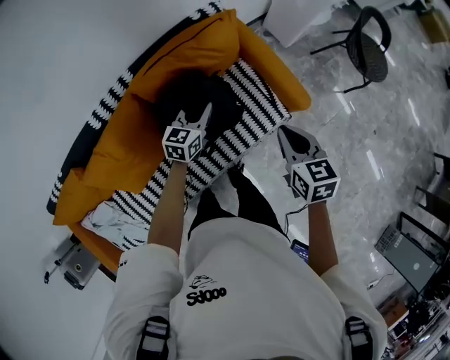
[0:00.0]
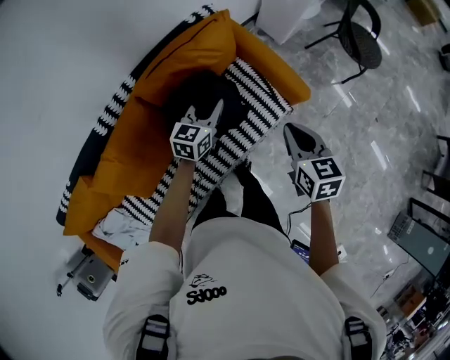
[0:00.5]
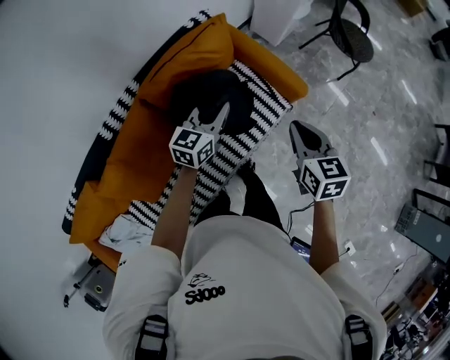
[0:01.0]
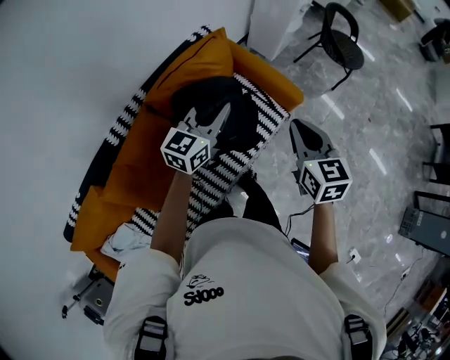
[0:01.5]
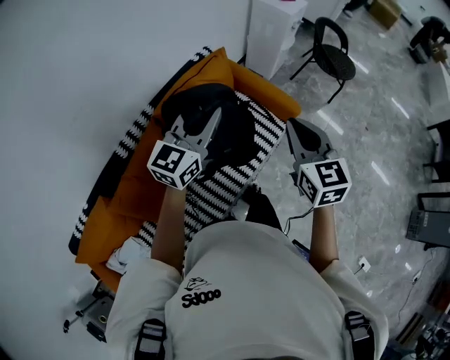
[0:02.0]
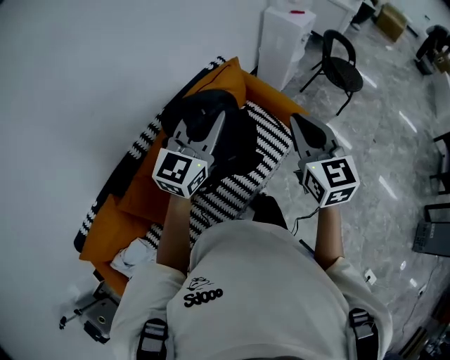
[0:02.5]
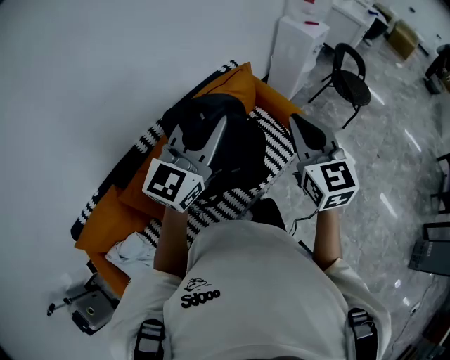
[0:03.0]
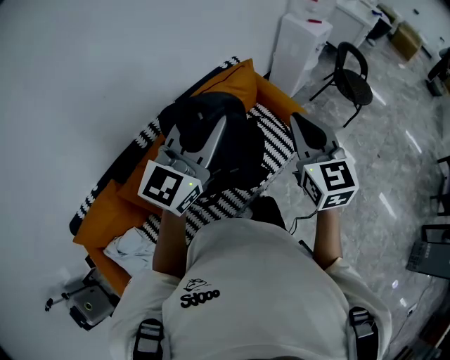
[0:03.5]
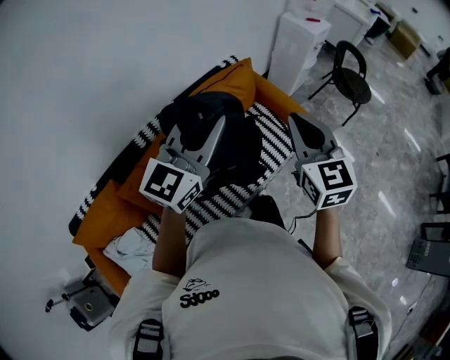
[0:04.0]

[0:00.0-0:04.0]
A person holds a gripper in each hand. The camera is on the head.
0:00.0 to 0:02.0: Both grippers move upward and backward, approximately 30 cm. The right gripper swivels some 30 degrees; the left gripper rotates some 30 degrees.
0:02.0 to 0:04.0: The left gripper goes approximately 15 cm backward and upward. The right gripper heads upward and to the left, covering some 10 cm.

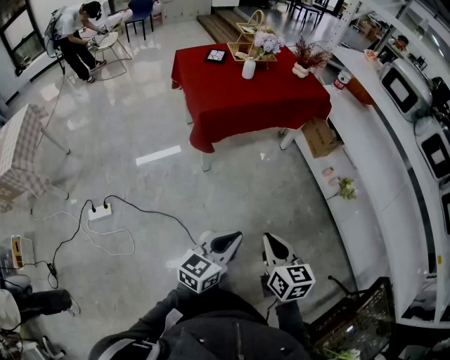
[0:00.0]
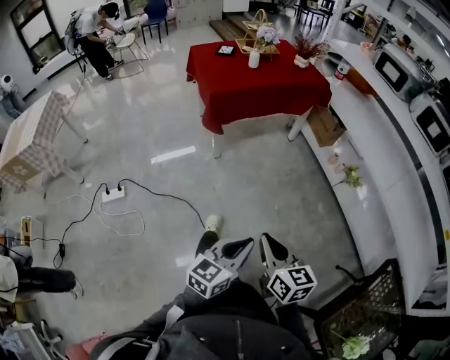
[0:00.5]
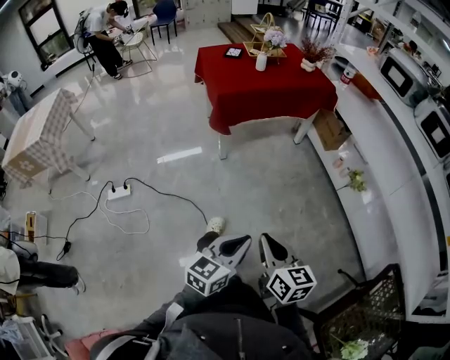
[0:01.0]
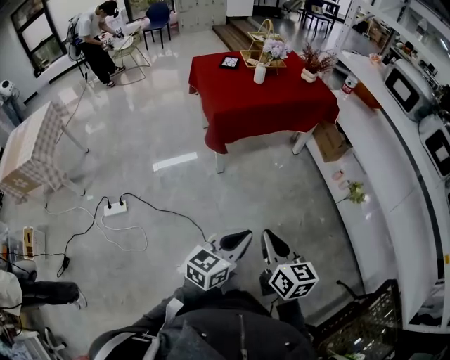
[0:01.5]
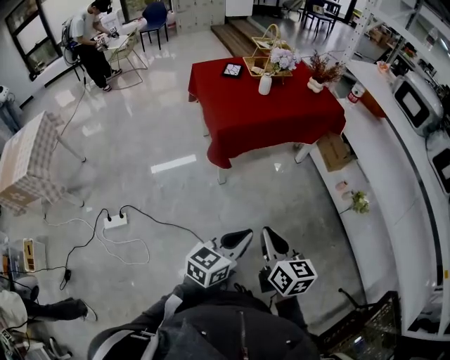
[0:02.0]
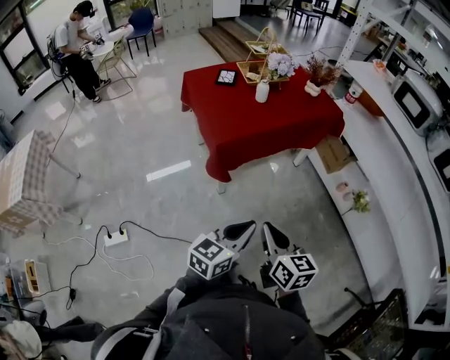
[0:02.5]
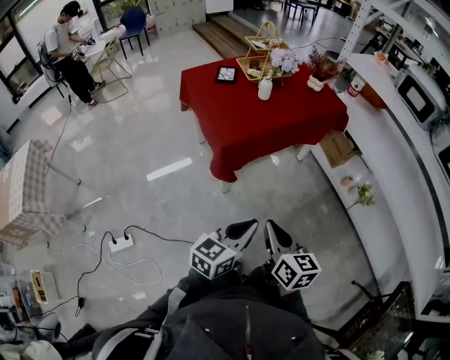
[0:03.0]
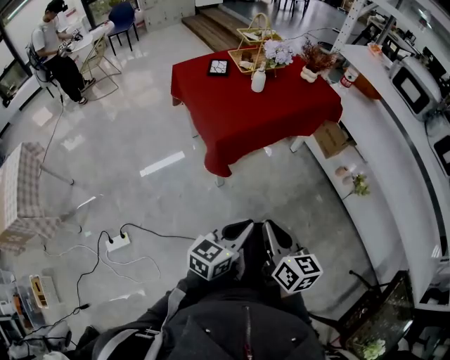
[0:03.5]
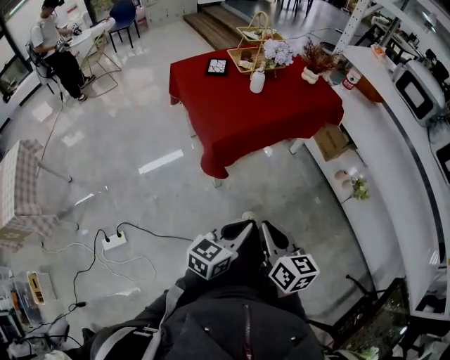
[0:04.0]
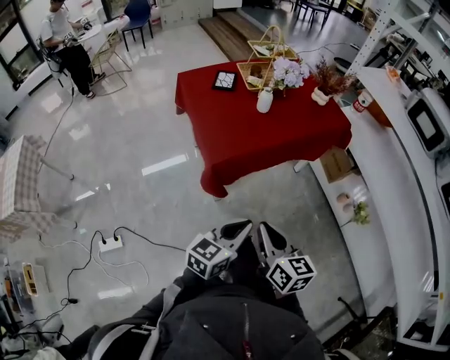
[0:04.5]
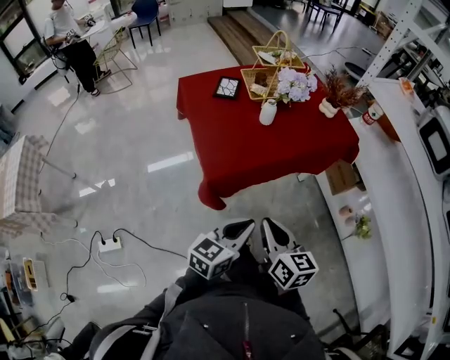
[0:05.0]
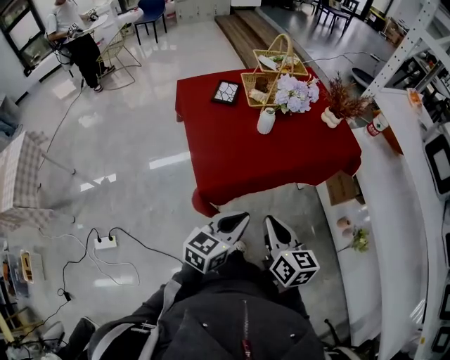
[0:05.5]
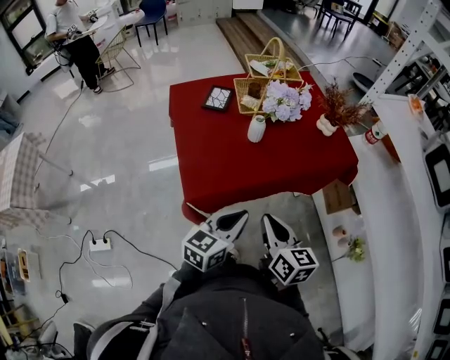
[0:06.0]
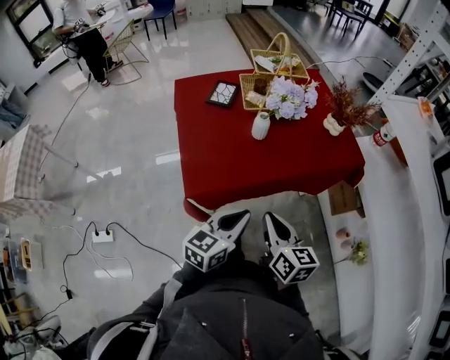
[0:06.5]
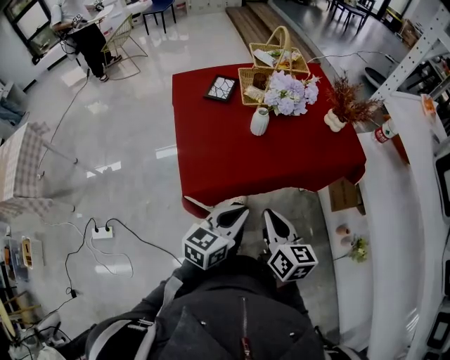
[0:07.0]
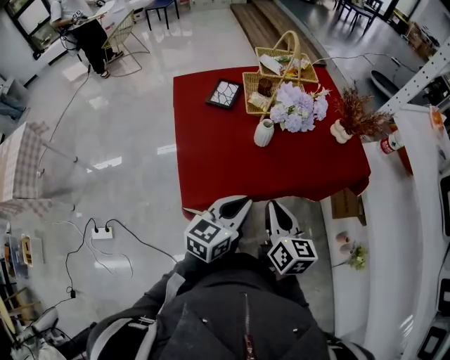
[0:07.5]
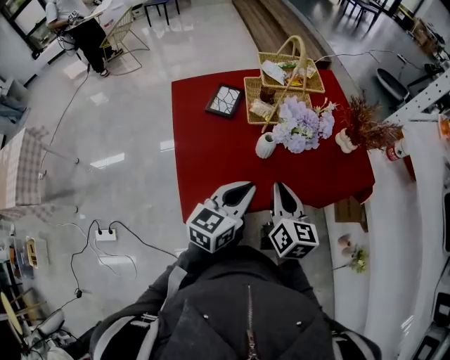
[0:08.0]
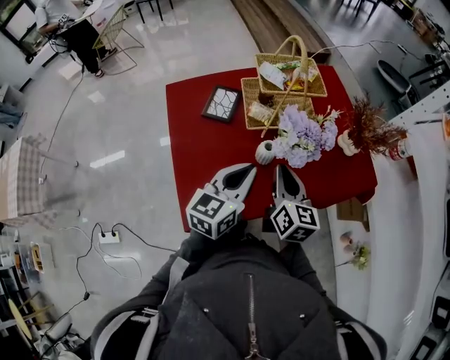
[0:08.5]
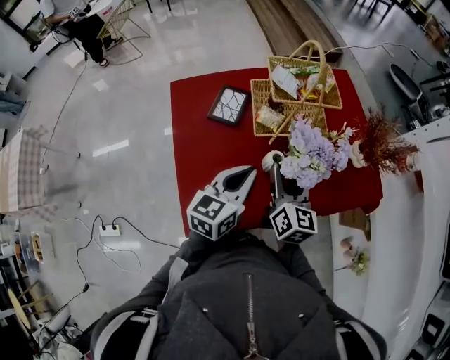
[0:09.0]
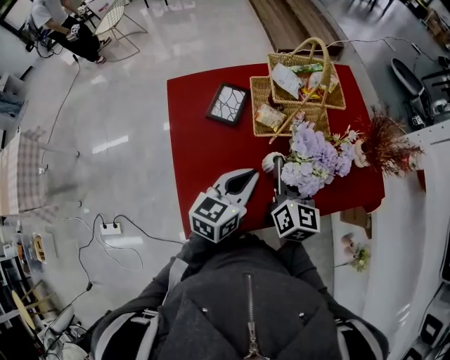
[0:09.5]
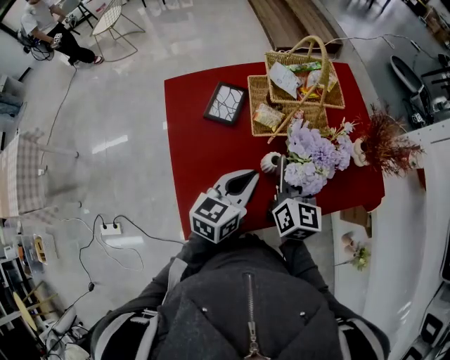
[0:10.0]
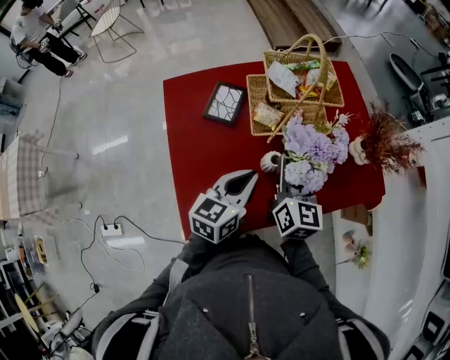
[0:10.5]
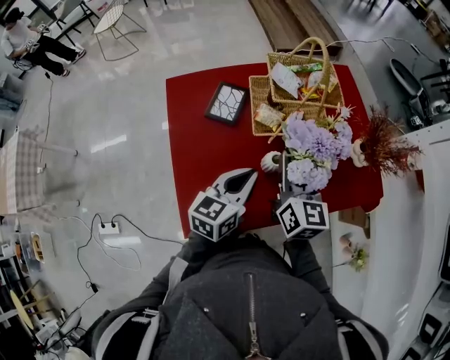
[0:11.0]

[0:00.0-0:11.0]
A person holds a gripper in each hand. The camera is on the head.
0:00.0 to 0:02.0: The left gripper travels backward and back again, roughly 20 cm each way. Meanwhile the right gripper is displaced to the left by approximately 5 cm, and goes backward and returns, approximately 15 cm each way.
0:02.0 to 0:03.5: The grippers both shift to the left and forward by approximately 10 cm.
0:03.5 to 0:05.5: The two grippers go approximately 30 cm forward.
0:05.5 to 0:07.5: The two grippers go about 15 cm forward.
0:07.5 to 0:09.0: Both grippers travel together forward, roughly 20 cm. The right gripper opens.
0:09.0 to 0:11.0: The right gripper changes place by approximately 5 cm, and closes up.

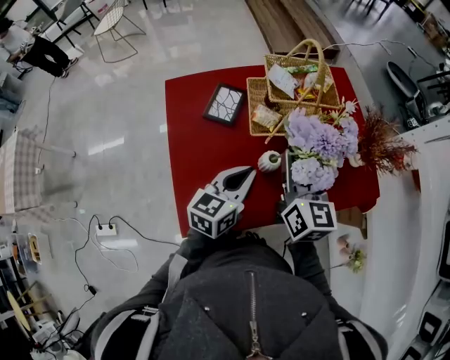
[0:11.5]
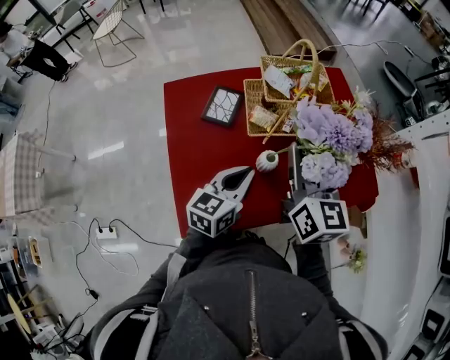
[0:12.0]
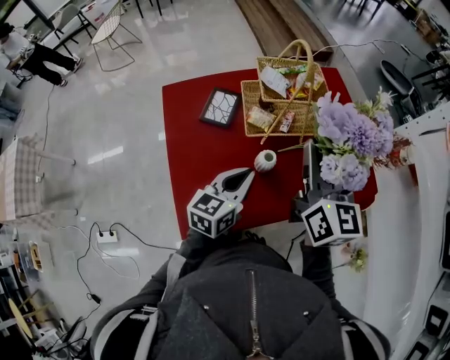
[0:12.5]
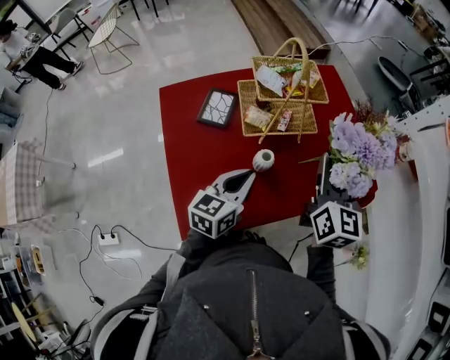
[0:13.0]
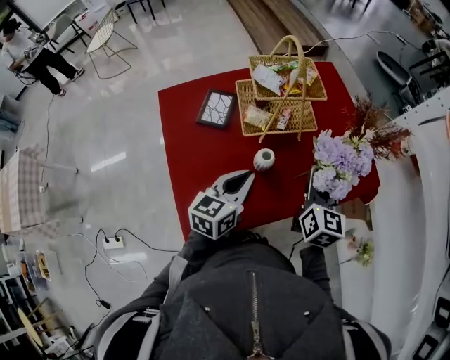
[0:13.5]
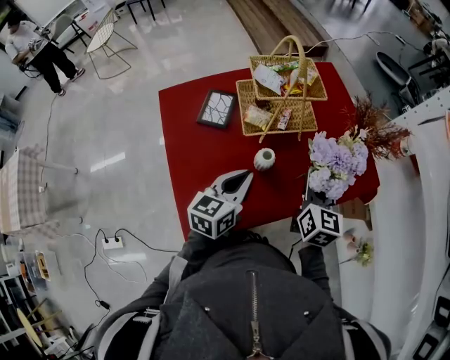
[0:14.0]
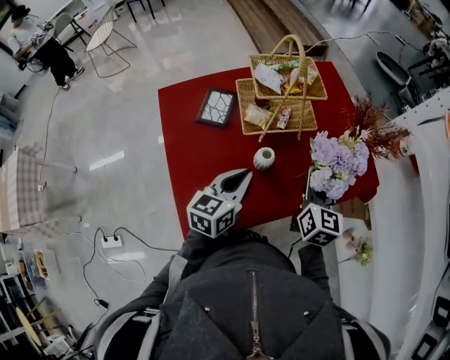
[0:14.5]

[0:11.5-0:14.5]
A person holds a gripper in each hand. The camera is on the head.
0:11.5 to 0:13.0: The right gripper travels to the right by some 10 cm.
0:13.0 to 0:14.5: The right gripper shifts about 10 cm downward.

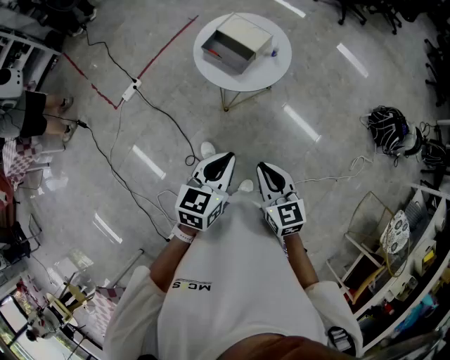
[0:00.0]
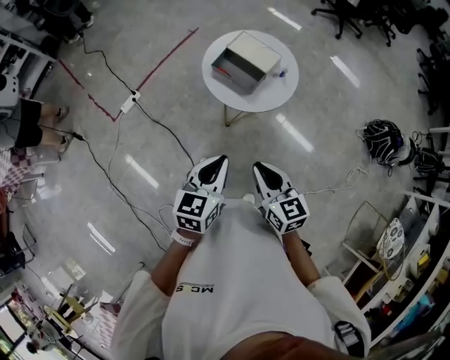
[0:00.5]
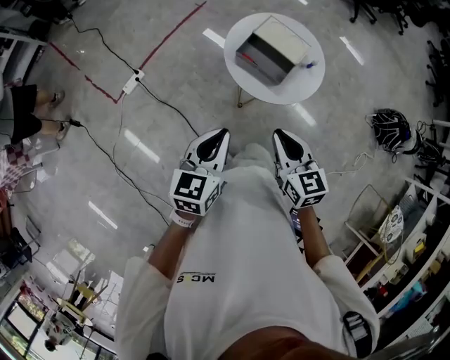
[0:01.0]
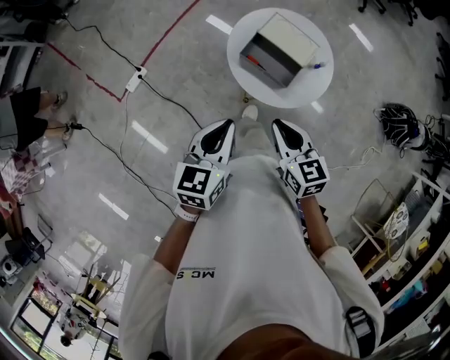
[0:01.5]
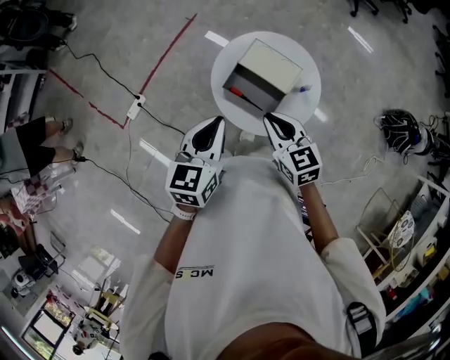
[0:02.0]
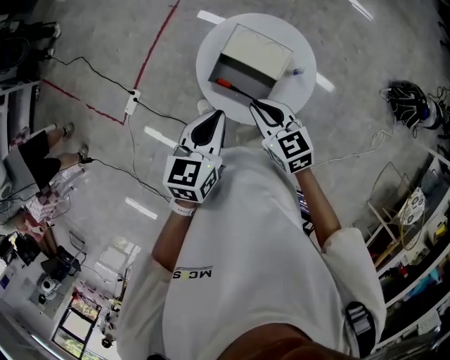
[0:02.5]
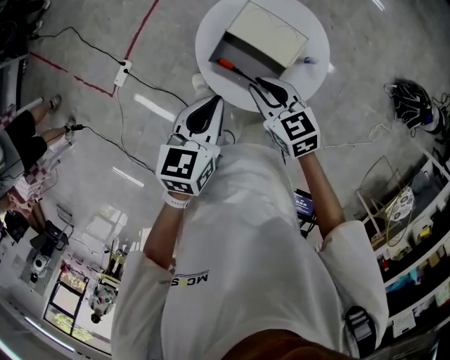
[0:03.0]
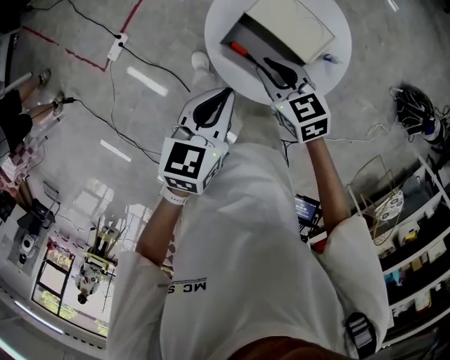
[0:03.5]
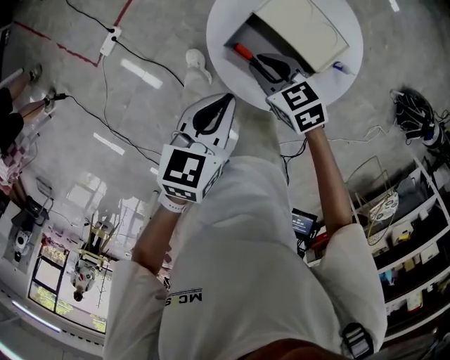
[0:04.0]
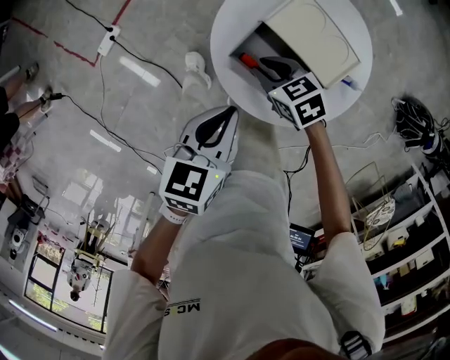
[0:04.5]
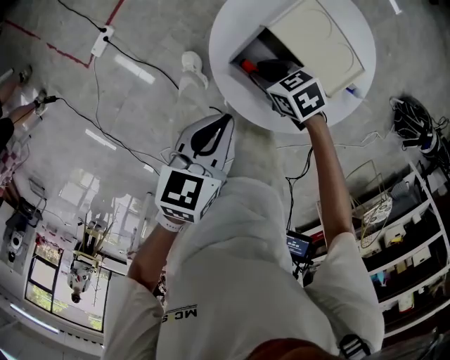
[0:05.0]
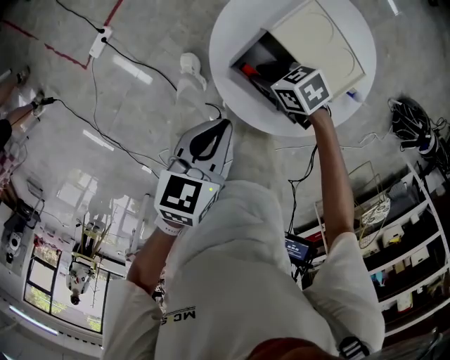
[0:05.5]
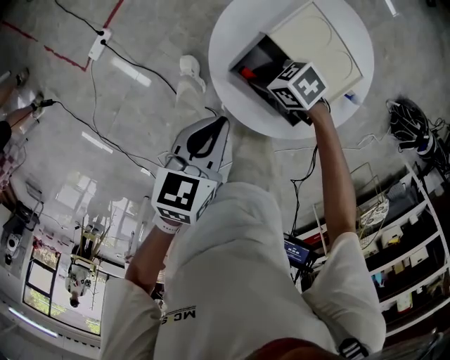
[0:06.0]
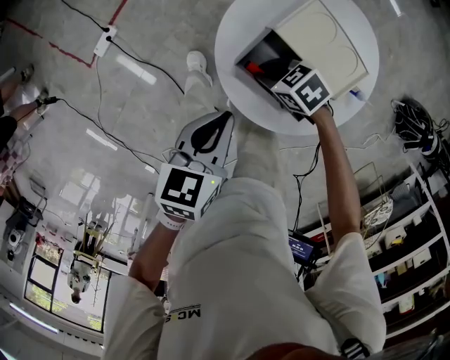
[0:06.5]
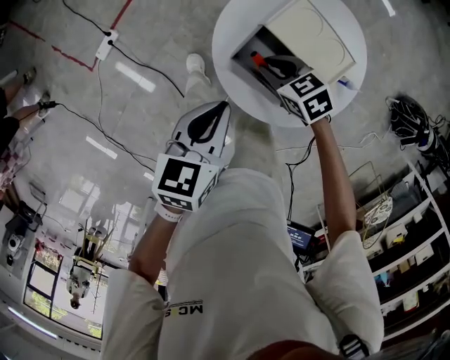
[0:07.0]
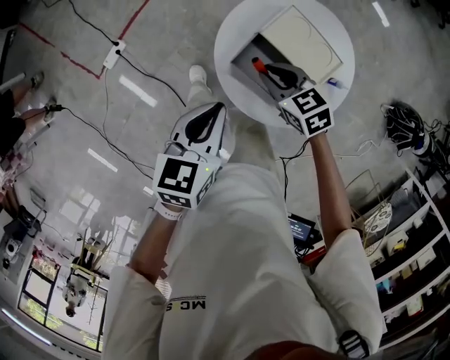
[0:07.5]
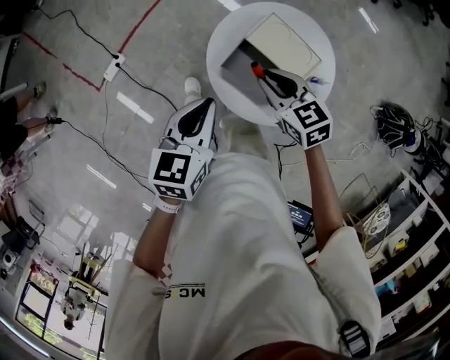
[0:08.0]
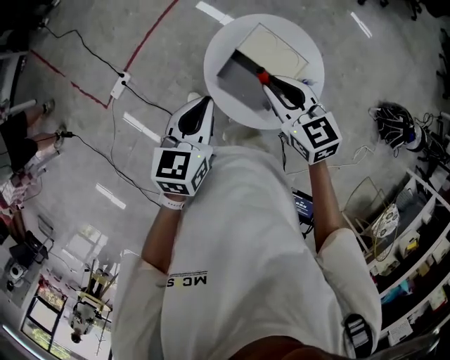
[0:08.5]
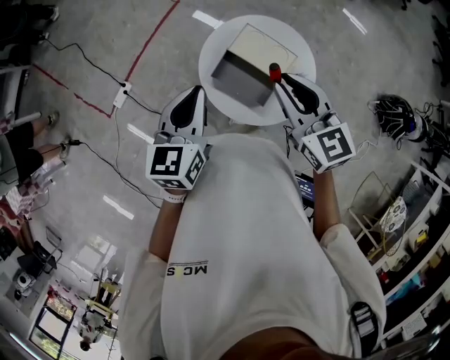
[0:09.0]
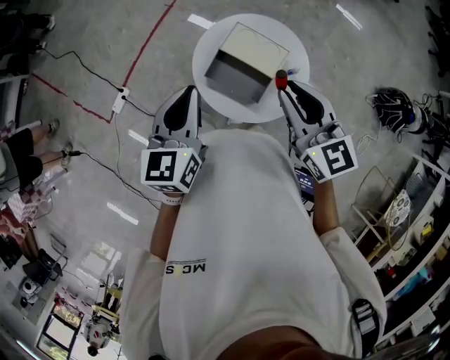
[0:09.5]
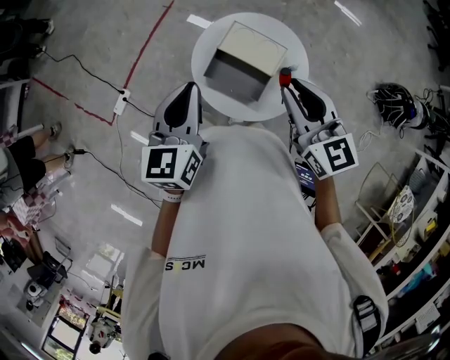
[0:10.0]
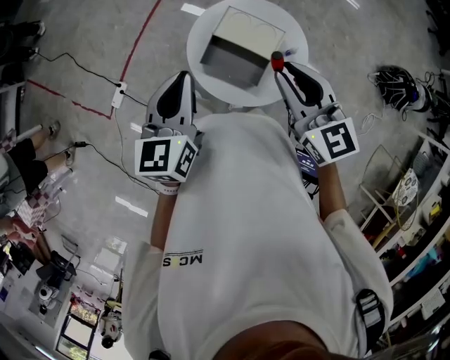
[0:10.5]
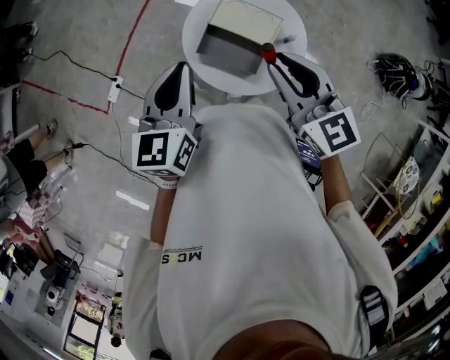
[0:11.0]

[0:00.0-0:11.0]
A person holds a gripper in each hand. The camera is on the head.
0:00.0 to 0:02.0: The right gripper shifts about 35 cm forward, while the left gripper goes about 35 cm forward and to the left.
0:02.0 to 0:03.5: The left gripper shifts some 10 cm downward. Meanwhile the right gripper shifts roughly 15 cm downward and forward.
0:03.5 to 0:05.5: The left gripper goes some 10 cm downward; the right gripper shifts about 20 cm downward, and rotates some 40 degrees.
0:05.5 to 0:07.5: The left gripper heads upward, covering about 10 cm. The right gripper moves upward, roughly 15 cm, and turns by about 30 degrees.
0:07.5 to 0:09.0: The right gripper heads upward, covering roughly 25 cm, and turns by roughly 40 degrees. Meanwhile the left gripper is displaced upward by about 15 cm, and swivels about 20 degrees.
0:09.0 to 0:11.0: The grippers make only small movements.
